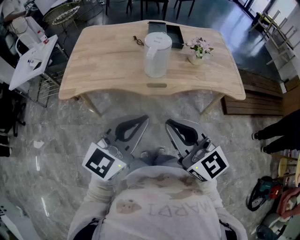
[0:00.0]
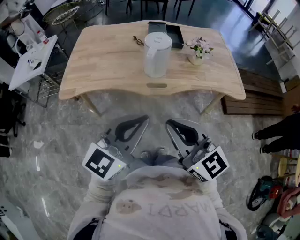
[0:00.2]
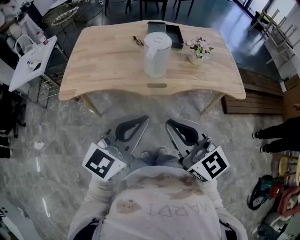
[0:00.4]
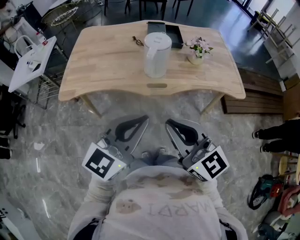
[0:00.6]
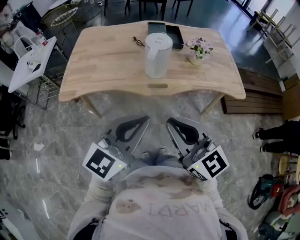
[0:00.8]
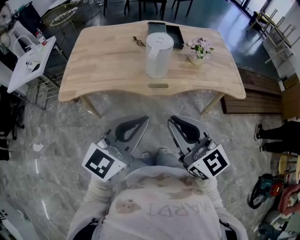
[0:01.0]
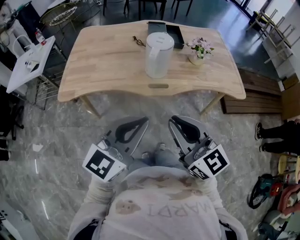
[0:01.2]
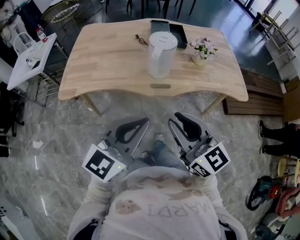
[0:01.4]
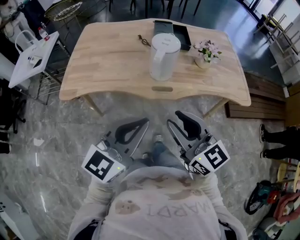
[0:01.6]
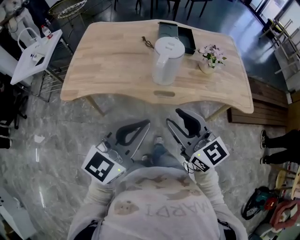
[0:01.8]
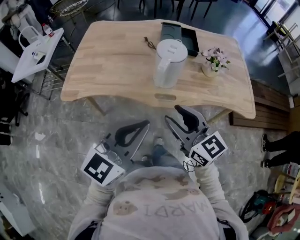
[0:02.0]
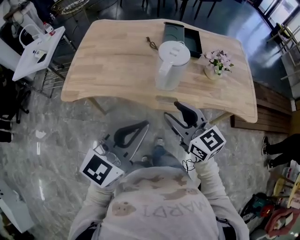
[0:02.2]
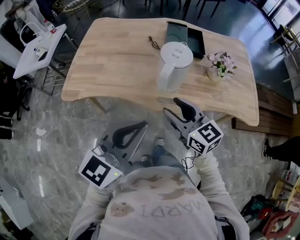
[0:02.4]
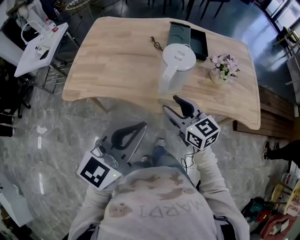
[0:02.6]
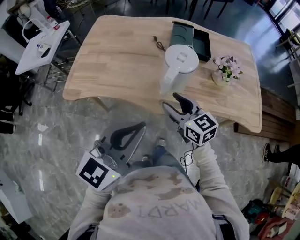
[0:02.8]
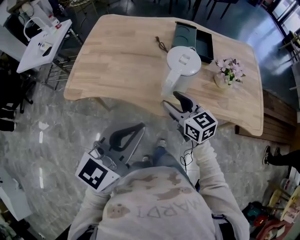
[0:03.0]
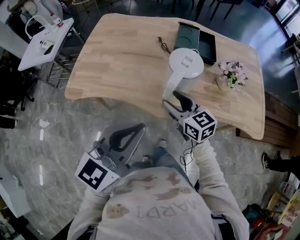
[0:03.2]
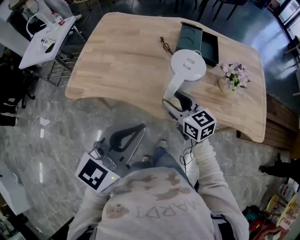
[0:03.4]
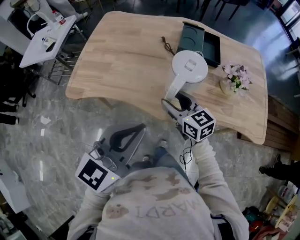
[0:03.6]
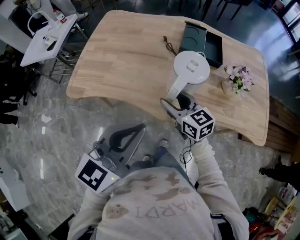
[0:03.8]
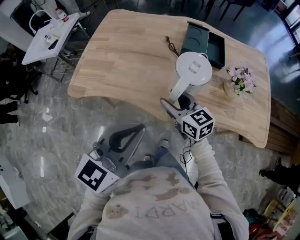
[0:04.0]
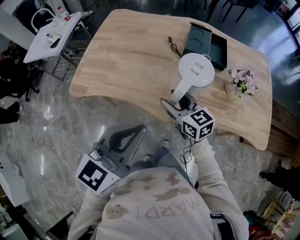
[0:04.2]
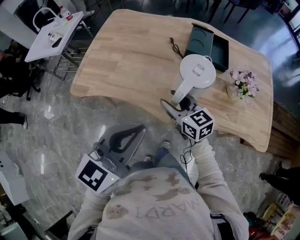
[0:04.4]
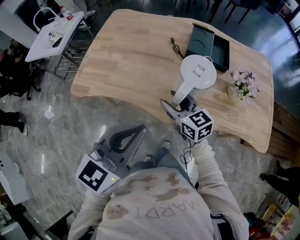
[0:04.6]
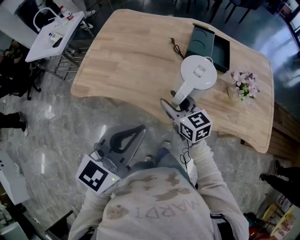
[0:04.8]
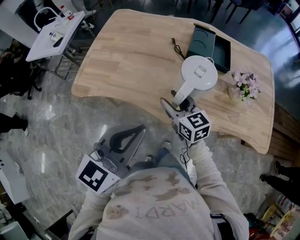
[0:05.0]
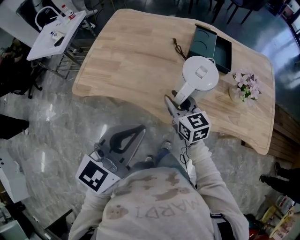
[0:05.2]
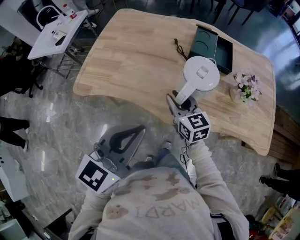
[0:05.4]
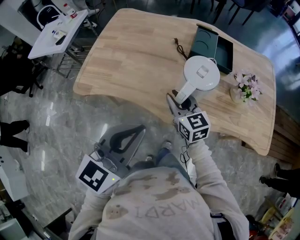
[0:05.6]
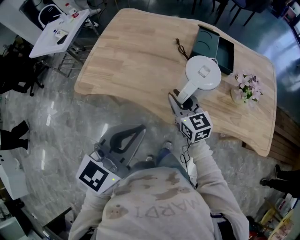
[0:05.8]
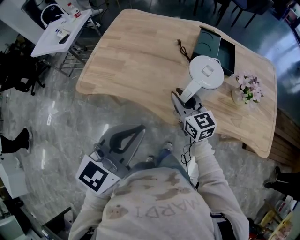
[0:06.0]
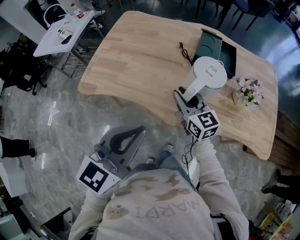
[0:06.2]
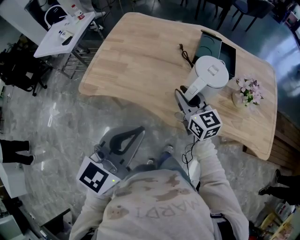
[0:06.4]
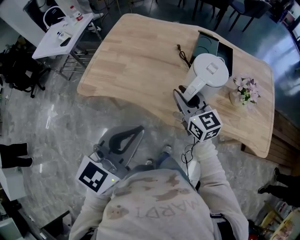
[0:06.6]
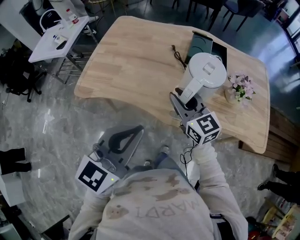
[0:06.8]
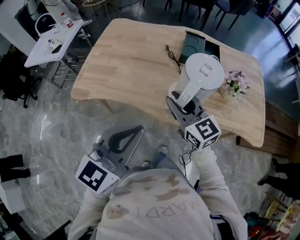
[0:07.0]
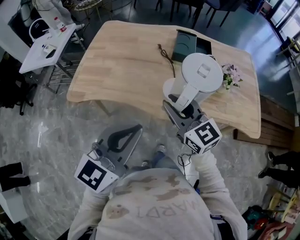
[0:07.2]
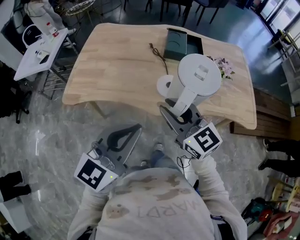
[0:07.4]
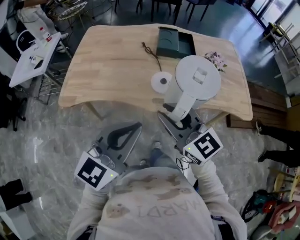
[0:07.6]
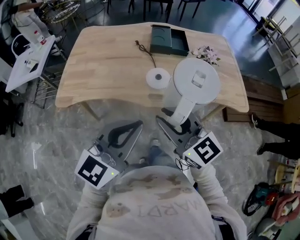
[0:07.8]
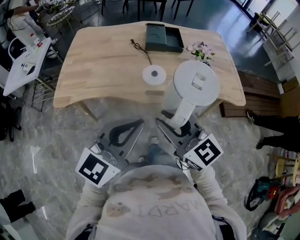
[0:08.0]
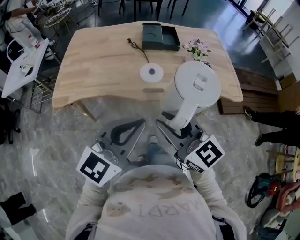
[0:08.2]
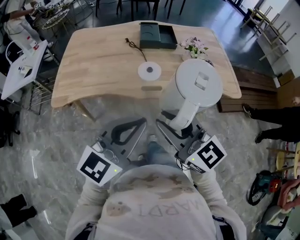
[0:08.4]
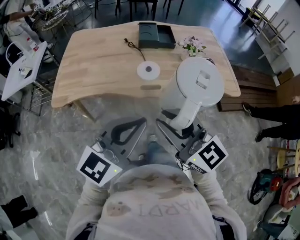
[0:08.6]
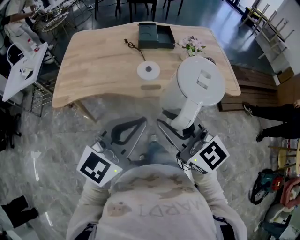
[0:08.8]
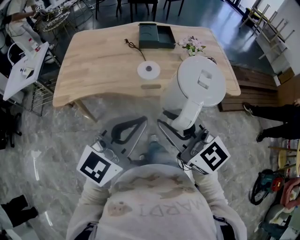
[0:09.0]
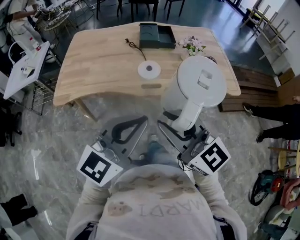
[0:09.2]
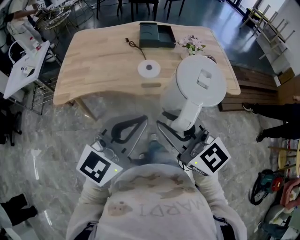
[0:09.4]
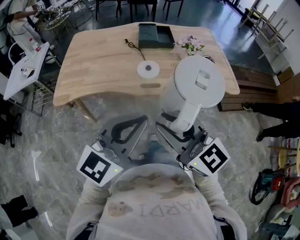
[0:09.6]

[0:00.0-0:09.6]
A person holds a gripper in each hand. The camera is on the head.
0:00.0 to 0:01.6: The right gripper travels forward by approximately 5 cm, and opens up.
0:01.6 to 0:03.2: The right gripper is displaced forward and downward by roughly 25 cm, and opens up. Meanwhile the left gripper travels forward by about 10 cm.
0:03.2 to 0:04.8: The right gripper moves about 5 cm.
0:04.8 to 0:06.4: The right gripper closes.
0:06.4 to 0:08.0: The left gripper goes some 15 cm backward, and swivels some 20 degrees. The right gripper goes roughly 30 cm backward.
0:08.0 to 0:09.6: Both grippers travel together backward, roughly 10 cm.

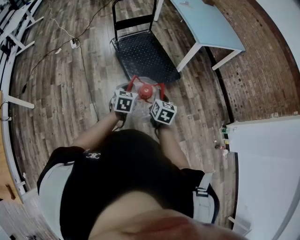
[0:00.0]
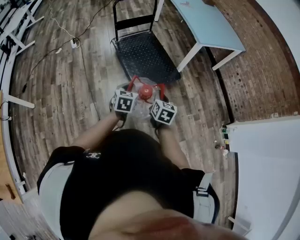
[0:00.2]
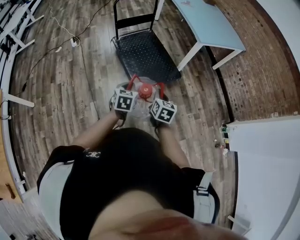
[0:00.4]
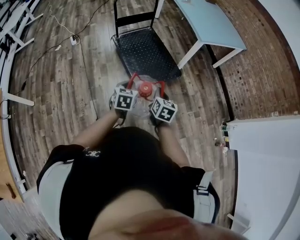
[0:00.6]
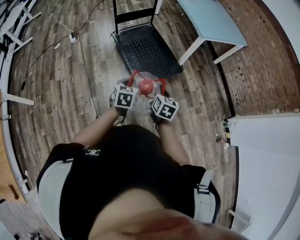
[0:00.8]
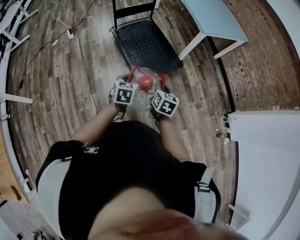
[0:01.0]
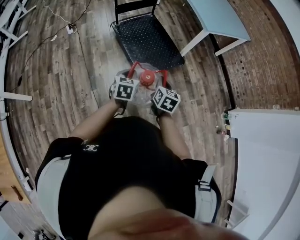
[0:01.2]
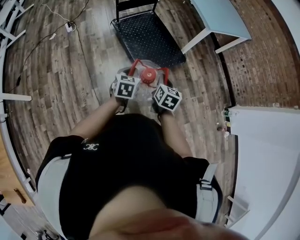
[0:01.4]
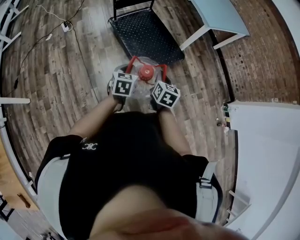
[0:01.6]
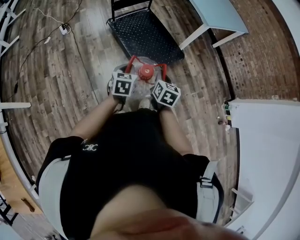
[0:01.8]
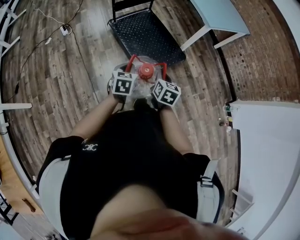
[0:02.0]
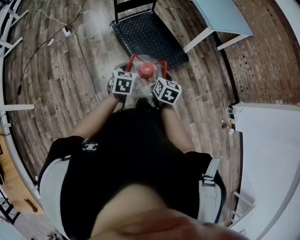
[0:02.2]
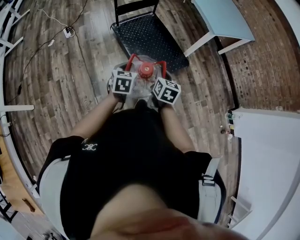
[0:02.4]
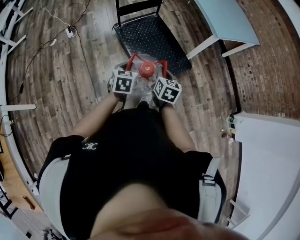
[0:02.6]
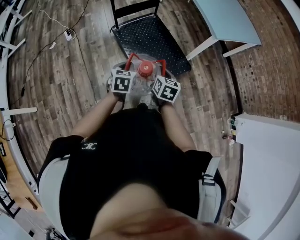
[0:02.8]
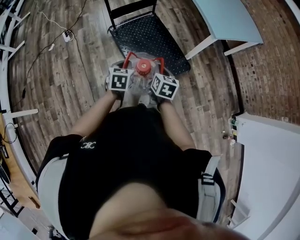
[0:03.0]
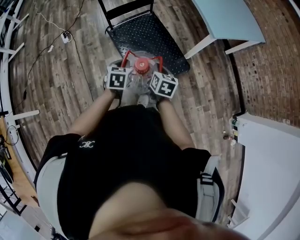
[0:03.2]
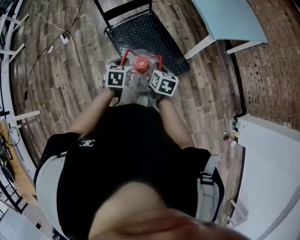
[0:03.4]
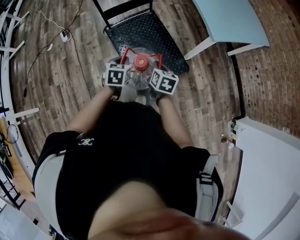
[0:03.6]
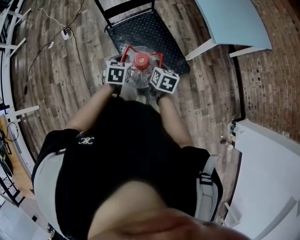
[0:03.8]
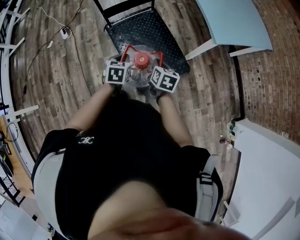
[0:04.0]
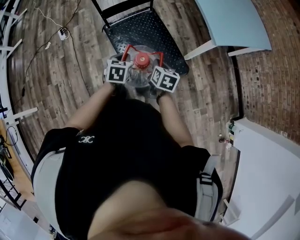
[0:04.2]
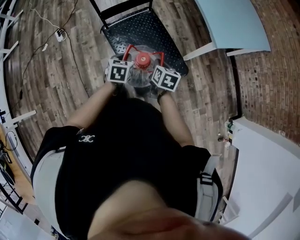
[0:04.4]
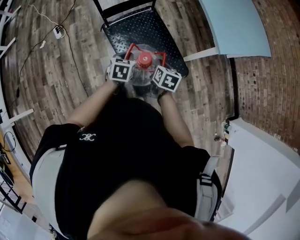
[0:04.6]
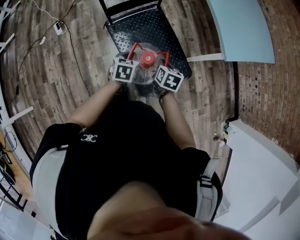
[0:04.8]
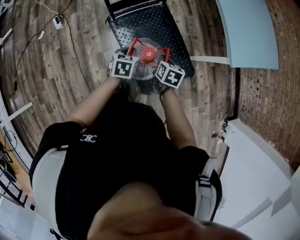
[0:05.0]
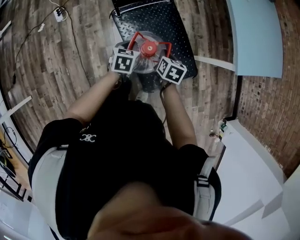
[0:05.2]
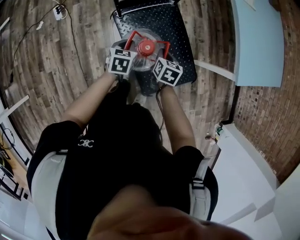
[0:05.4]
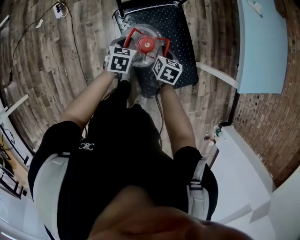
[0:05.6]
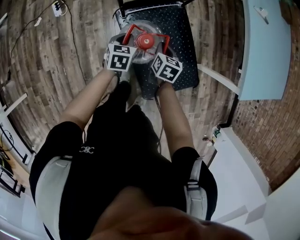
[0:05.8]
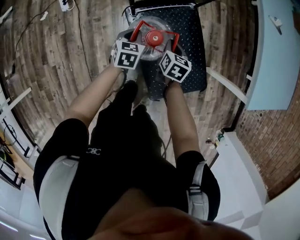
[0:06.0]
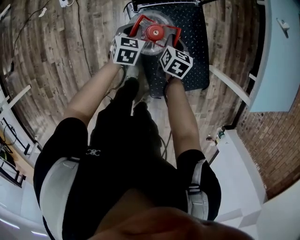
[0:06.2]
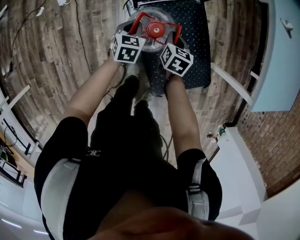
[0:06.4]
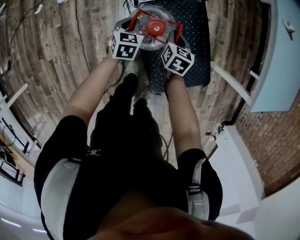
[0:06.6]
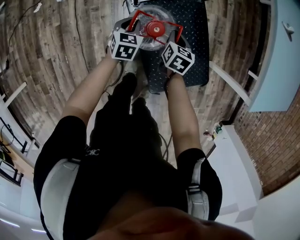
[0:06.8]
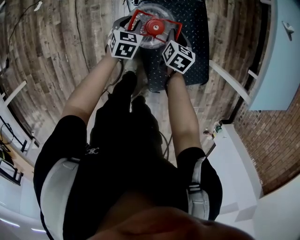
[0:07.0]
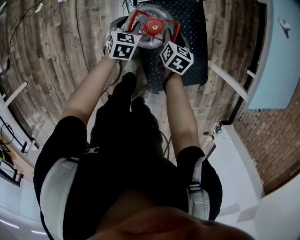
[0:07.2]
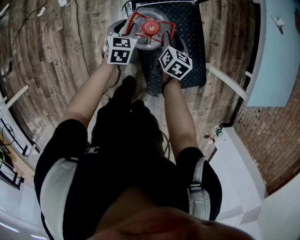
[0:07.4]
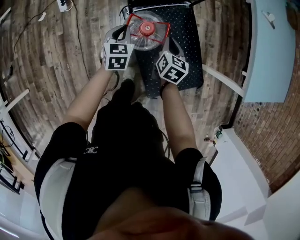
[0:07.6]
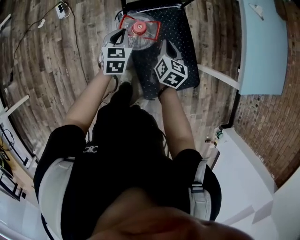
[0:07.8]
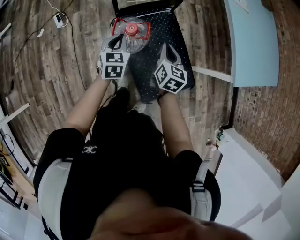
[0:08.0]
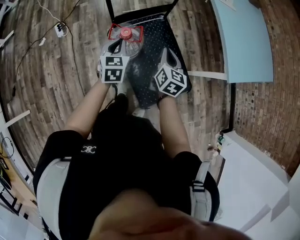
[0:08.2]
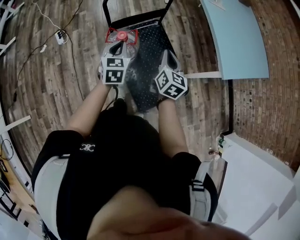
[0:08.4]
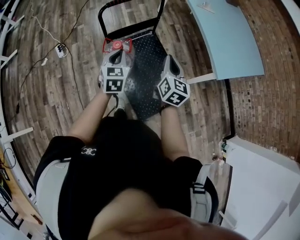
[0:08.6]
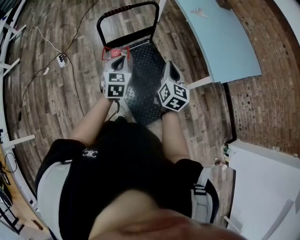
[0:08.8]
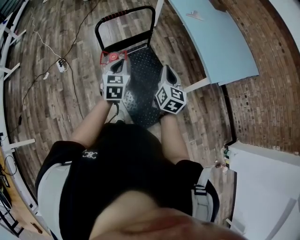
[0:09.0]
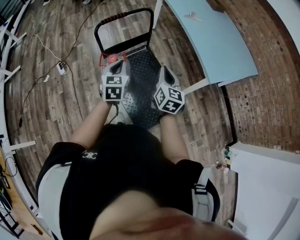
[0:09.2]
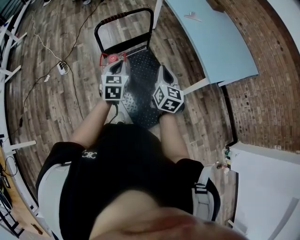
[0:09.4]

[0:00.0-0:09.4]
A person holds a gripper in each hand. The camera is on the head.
0:00.0 to 0:01.6: Both grippers travel together to the left, some 10 cm.
0:01.6 to 0:03.2: The two grippers go approximately 25 cm forward.
0:03.2 to 0:04.8: Both grippers travel together forward, some 20 cm.
0:04.8 to 0:06.2: Both grippers travel together forward, to the left and downward, roughly 35 cm.
0:06.2 to 0:07.8: Both grippers travel together upward and backward, some 15 cm. The left gripper opens, then closes once more; the right gripper opens, then closes once more.
0:07.8 to 0:09.4: Both grippers move upward, to the right and backward, roughly 30 cm. The right gripper rotates approximately 20 degrees.

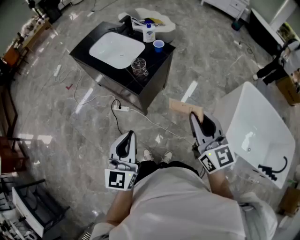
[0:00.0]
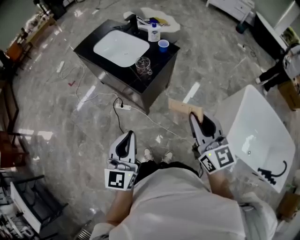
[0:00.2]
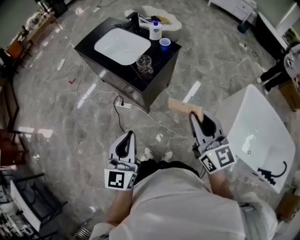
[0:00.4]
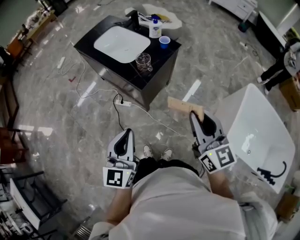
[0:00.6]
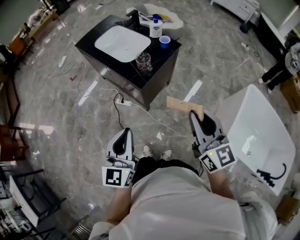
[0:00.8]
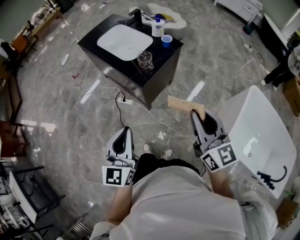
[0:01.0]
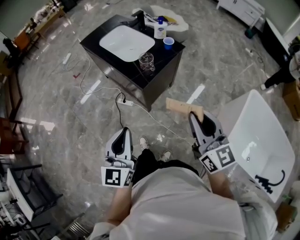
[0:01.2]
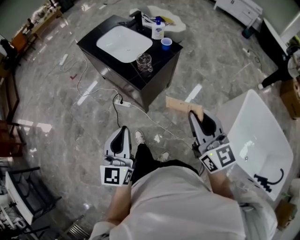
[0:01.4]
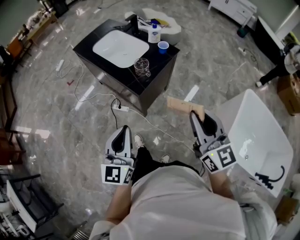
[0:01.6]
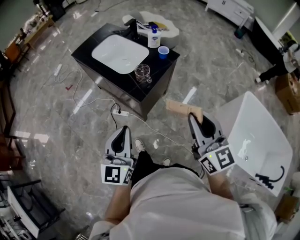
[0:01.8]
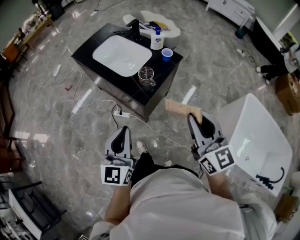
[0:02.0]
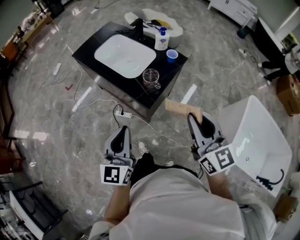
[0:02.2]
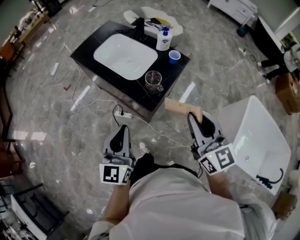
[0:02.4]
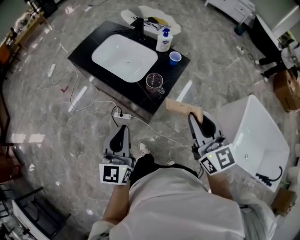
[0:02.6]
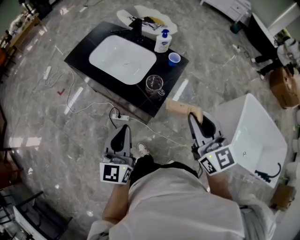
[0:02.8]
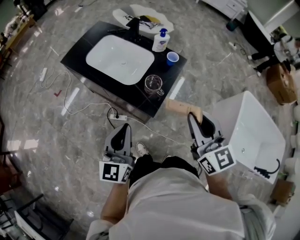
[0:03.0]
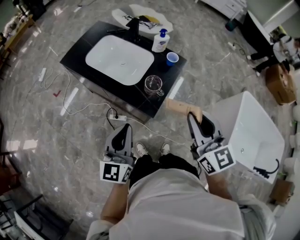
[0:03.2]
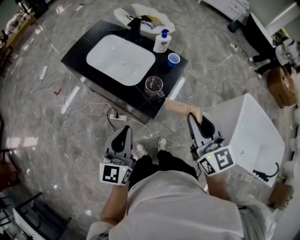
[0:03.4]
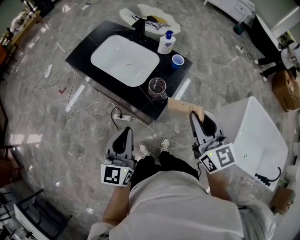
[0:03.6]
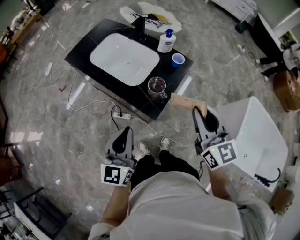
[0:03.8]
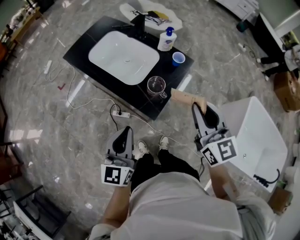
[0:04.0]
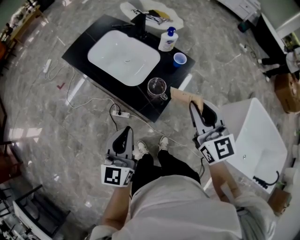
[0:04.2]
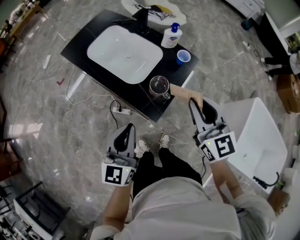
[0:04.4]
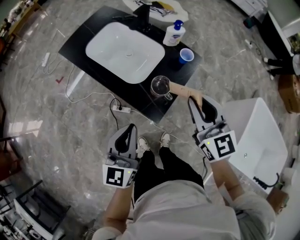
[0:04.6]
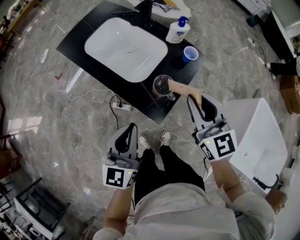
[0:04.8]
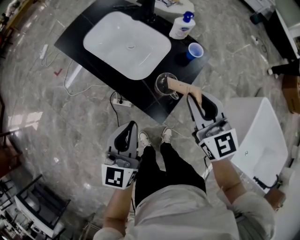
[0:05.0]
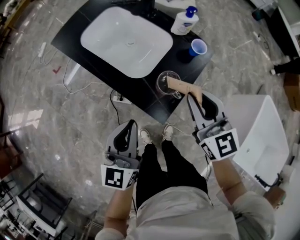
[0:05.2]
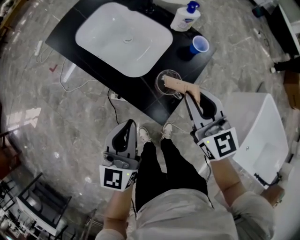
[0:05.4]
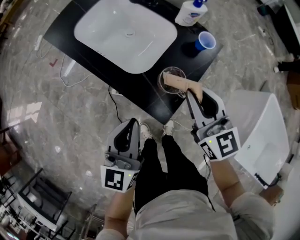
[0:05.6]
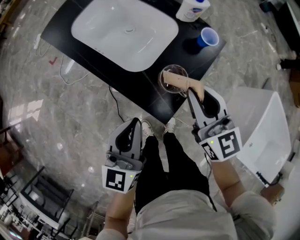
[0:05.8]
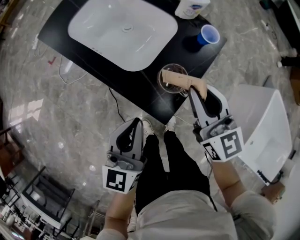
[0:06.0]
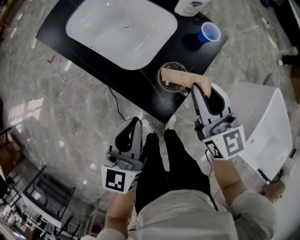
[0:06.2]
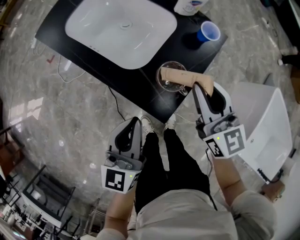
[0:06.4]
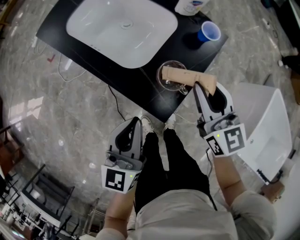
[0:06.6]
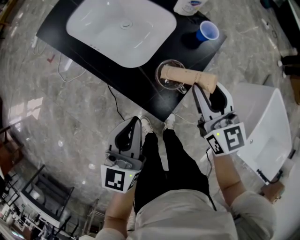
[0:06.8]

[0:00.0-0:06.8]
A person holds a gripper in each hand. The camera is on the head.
0:00.0 to 0:01.4: The grippers move only a little.
0:01.4 to 0:02.8: Both grippers move forward and to the left, about 20 cm.
0:02.8 to 0:04.0: The right gripper goes approximately 5 cm forward.
0:04.0 to 0:05.4: Both grippers travel together downward and forward, about 15 cm.
0:05.4 to 0:06.8: The right gripper shifts some 5 cm downward.
